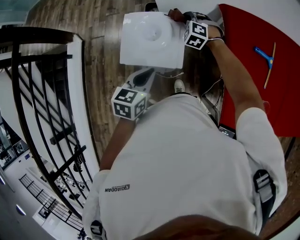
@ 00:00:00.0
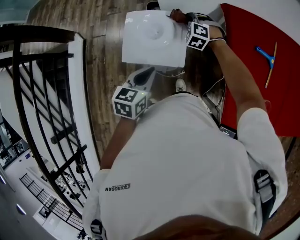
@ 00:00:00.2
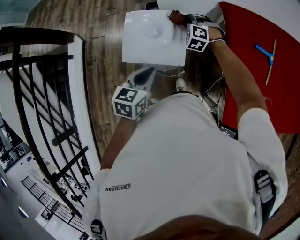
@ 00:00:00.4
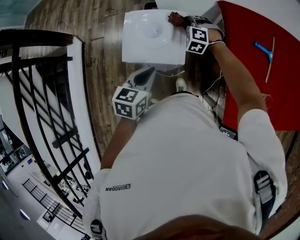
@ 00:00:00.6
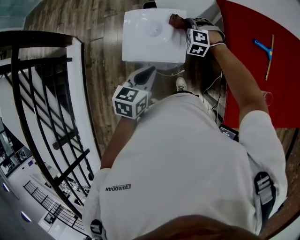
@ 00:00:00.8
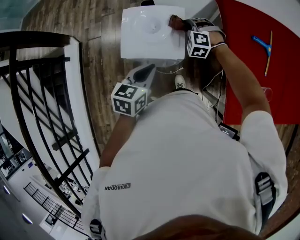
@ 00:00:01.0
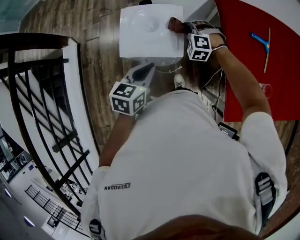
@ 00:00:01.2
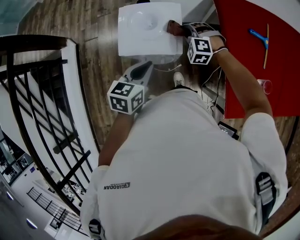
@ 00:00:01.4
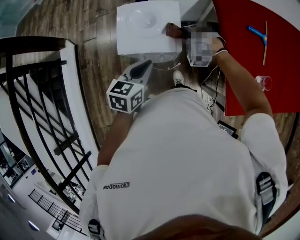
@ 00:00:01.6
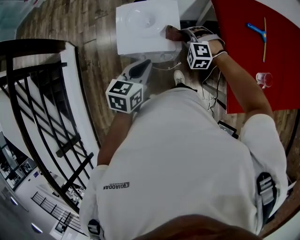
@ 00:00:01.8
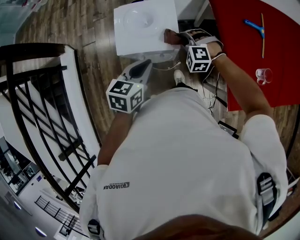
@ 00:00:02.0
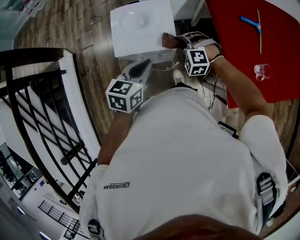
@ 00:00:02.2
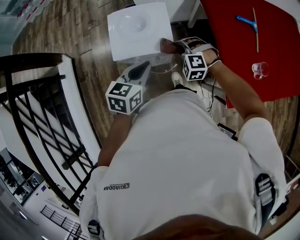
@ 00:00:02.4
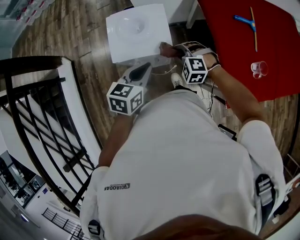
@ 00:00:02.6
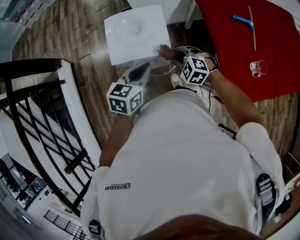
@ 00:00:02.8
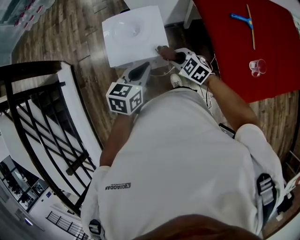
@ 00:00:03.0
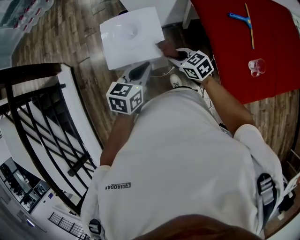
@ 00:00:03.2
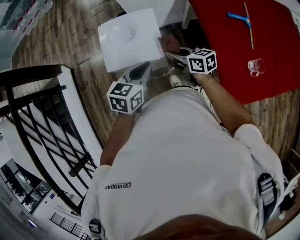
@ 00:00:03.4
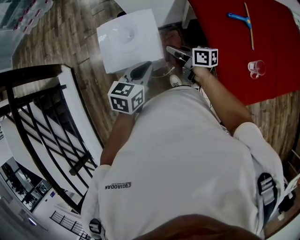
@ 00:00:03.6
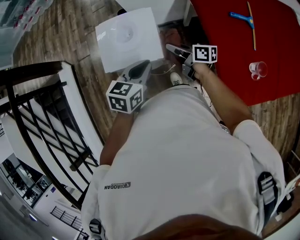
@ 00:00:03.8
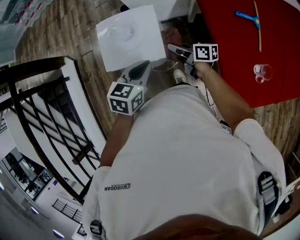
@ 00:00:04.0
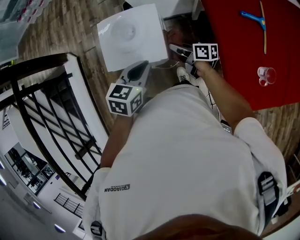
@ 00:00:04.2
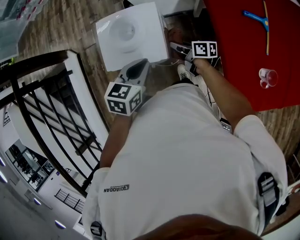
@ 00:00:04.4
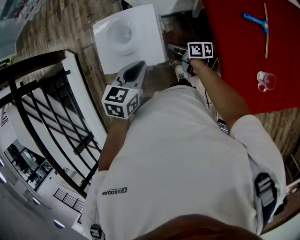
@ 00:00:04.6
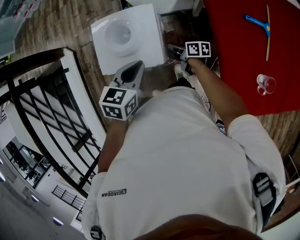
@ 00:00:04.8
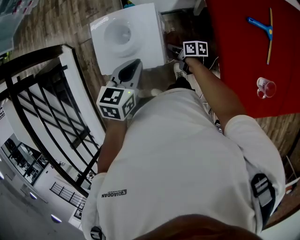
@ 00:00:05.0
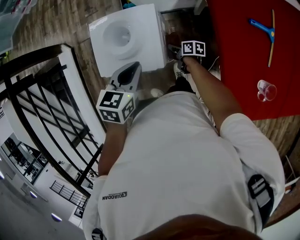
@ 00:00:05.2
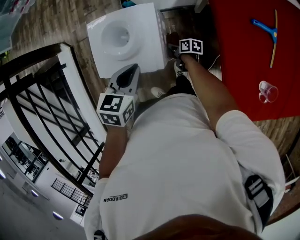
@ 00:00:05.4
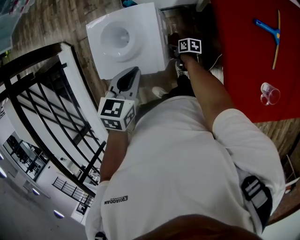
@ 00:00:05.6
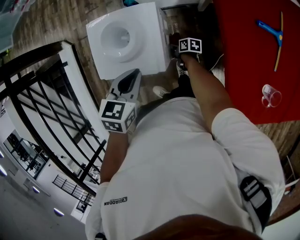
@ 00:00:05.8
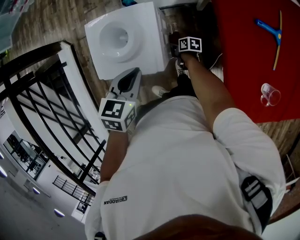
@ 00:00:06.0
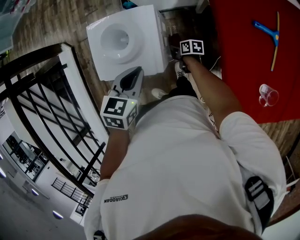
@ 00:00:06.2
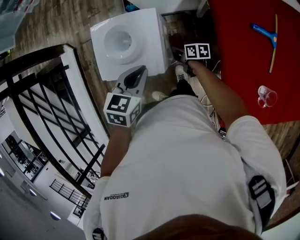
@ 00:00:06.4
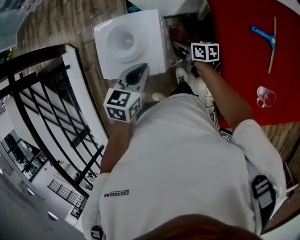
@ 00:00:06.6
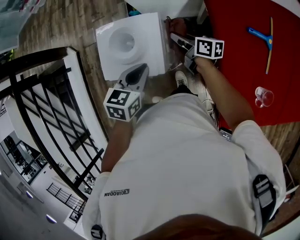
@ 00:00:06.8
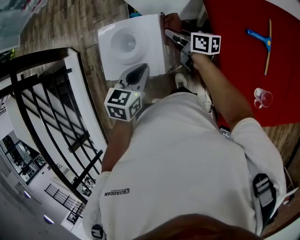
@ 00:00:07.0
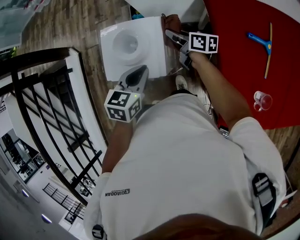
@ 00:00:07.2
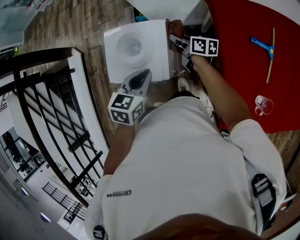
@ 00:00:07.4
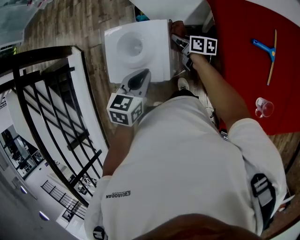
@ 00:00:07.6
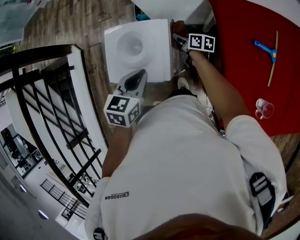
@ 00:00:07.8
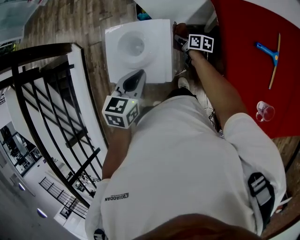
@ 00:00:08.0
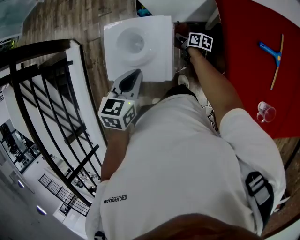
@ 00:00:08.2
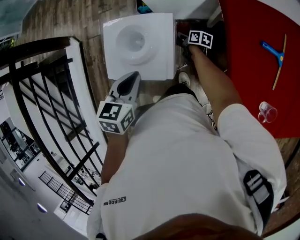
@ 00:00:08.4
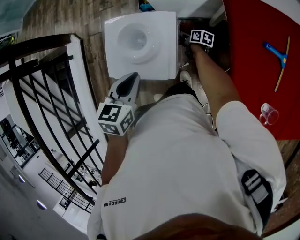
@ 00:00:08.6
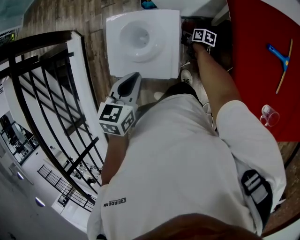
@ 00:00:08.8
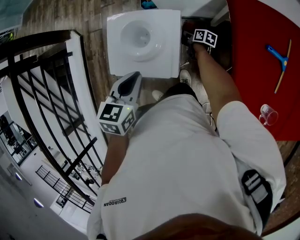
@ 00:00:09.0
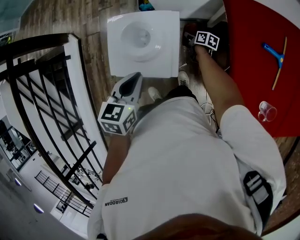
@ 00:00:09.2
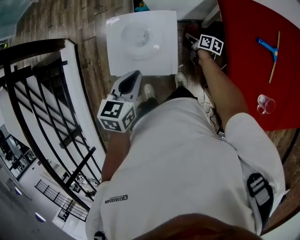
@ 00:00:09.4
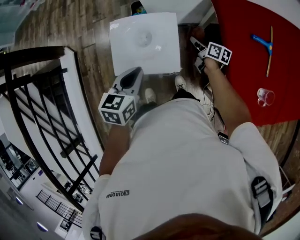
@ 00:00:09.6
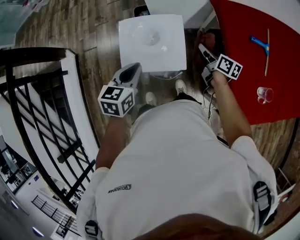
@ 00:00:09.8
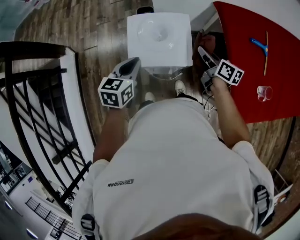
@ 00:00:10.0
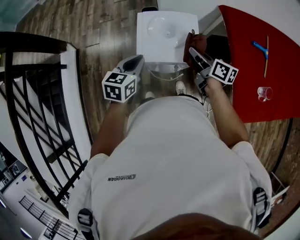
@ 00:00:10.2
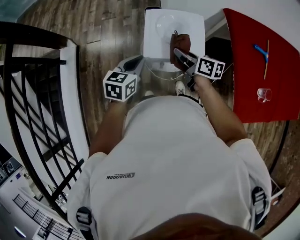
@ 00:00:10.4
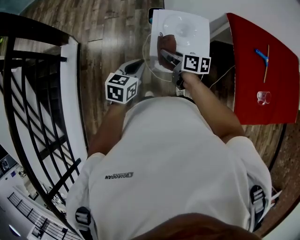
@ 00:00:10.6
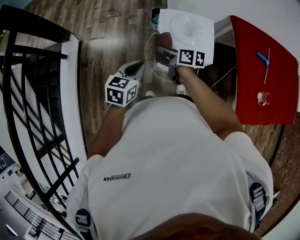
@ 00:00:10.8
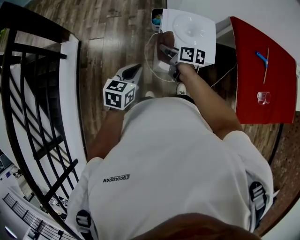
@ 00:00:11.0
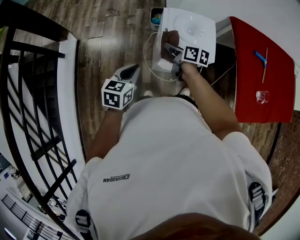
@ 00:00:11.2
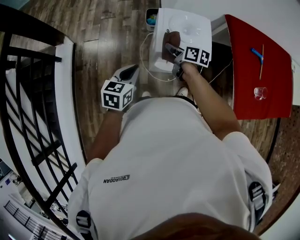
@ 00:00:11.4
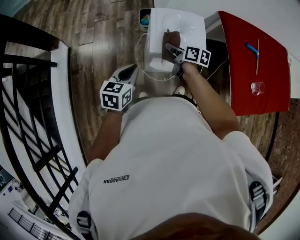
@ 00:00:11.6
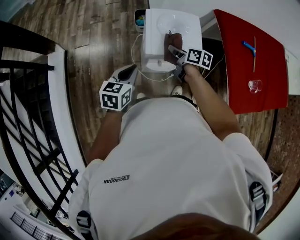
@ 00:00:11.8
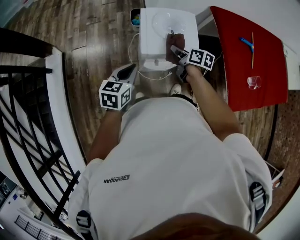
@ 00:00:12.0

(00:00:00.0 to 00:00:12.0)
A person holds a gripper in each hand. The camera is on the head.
00:00:00.0 - 00:00:01.6: The right gripper shifts about 15 cm backward.
00:00:01.6 - 00:00:03.0: The right gripper heads backward, covering approximately 10 cm, and rolls clockwise, seen from behind, by roughly 50 degrees.
00:00:03.0 - 00:00:04.4: The right gripper is displaced forward and downward by approximately 15 cm, and rolls clockwise, seen from behind, by approximately 70 degrees. The left gripper shifts by approximately 5 cm.
00:00:04.4 - 00:00:06.0: The right gripper travels downward by some 20 cm, and turns by about 30 degrees.
00:00:06.0 - 00:00:07.6: The right gripper travels upward and forward by about 25 cm, and rotates about 30 degrees.
00:00:07.6 - 00:00:09.0: The right gripper travels downward by roughly 20 cm, and swivels about 20 degrees. Meanwhile the left gripper travels to the left by approximately 5 cm.
00:00:09.0 - 00:00:10.4: The right gripper shifts some 40 cm upward, to the left and backward, and rotates approximately 30 degrees, while the left gripper travels to the left by about 15 cm.
00:00:10.4 - 00:00:12.0: The right gripper travels downward by approximately 5 cm, and moves some 15 cm to the left and comes back.

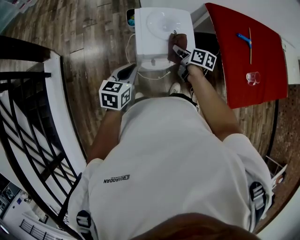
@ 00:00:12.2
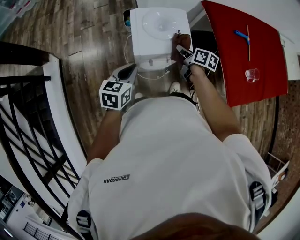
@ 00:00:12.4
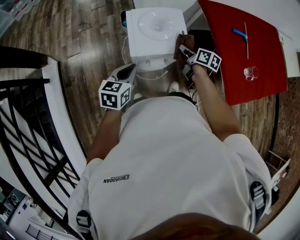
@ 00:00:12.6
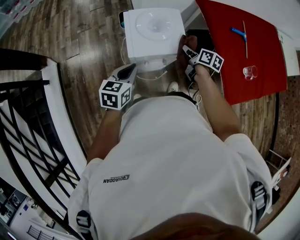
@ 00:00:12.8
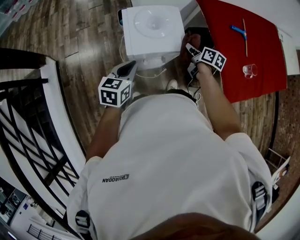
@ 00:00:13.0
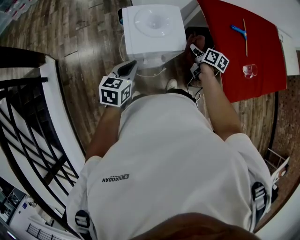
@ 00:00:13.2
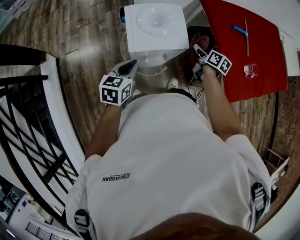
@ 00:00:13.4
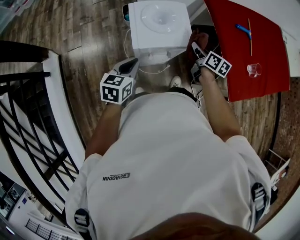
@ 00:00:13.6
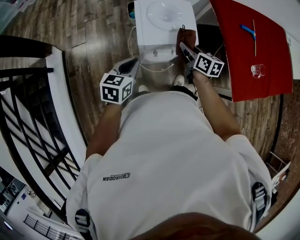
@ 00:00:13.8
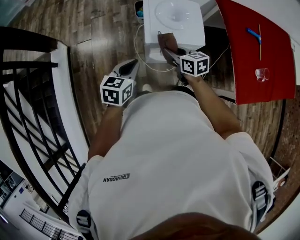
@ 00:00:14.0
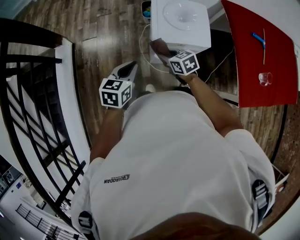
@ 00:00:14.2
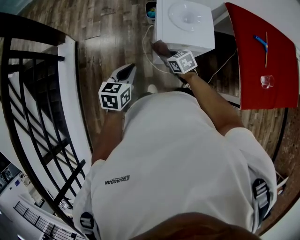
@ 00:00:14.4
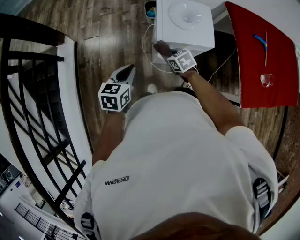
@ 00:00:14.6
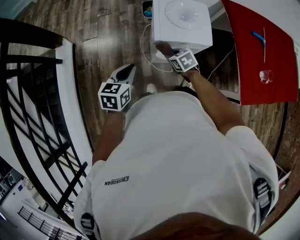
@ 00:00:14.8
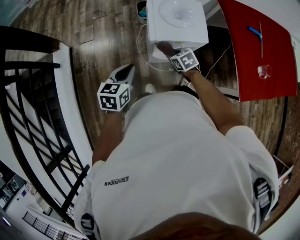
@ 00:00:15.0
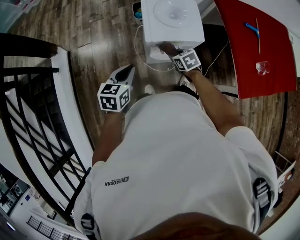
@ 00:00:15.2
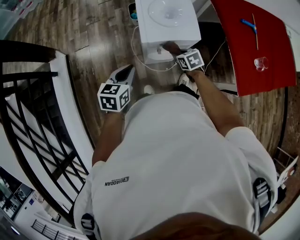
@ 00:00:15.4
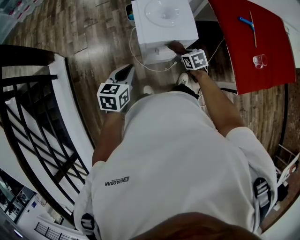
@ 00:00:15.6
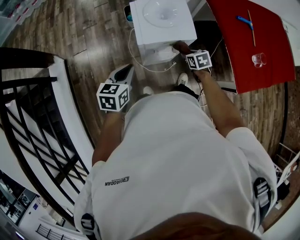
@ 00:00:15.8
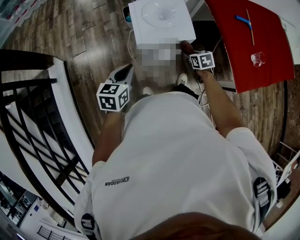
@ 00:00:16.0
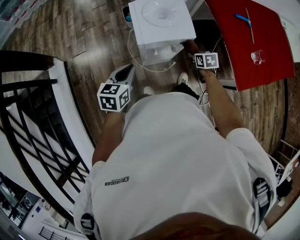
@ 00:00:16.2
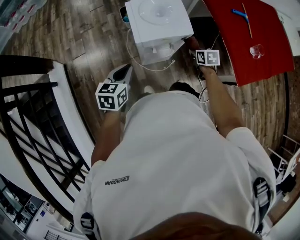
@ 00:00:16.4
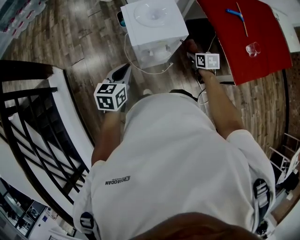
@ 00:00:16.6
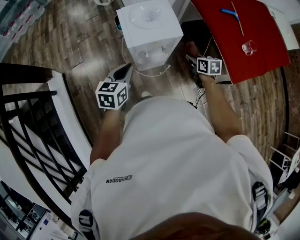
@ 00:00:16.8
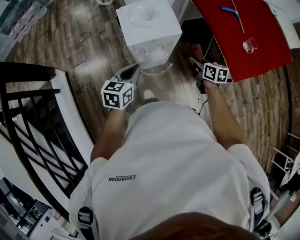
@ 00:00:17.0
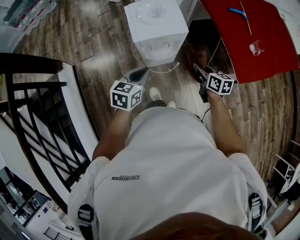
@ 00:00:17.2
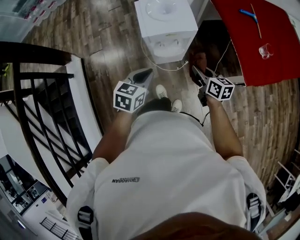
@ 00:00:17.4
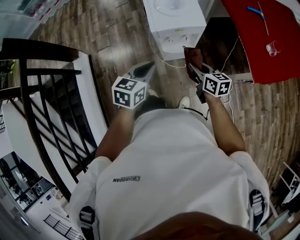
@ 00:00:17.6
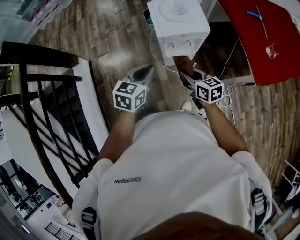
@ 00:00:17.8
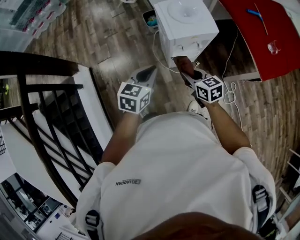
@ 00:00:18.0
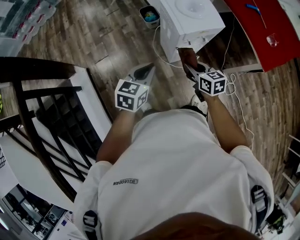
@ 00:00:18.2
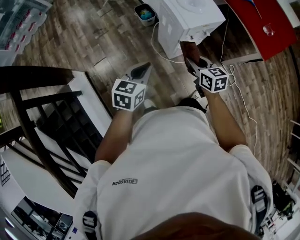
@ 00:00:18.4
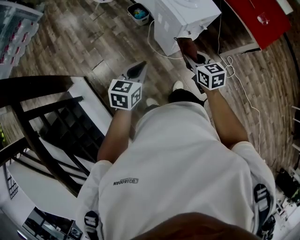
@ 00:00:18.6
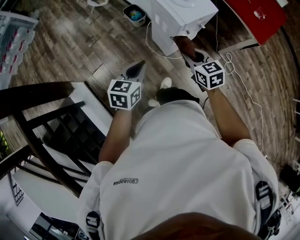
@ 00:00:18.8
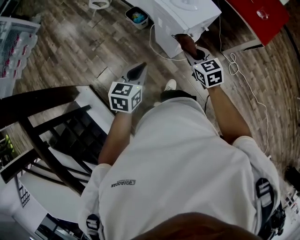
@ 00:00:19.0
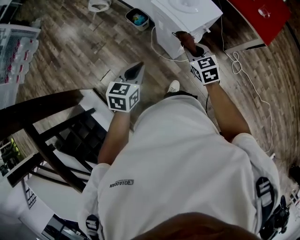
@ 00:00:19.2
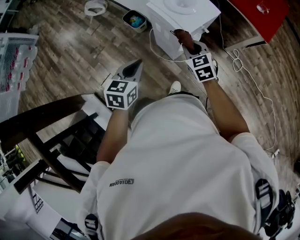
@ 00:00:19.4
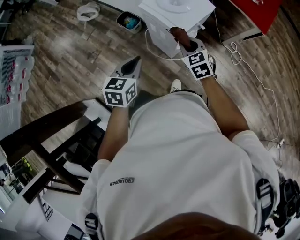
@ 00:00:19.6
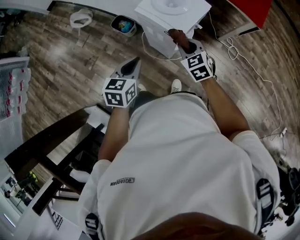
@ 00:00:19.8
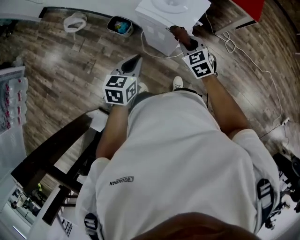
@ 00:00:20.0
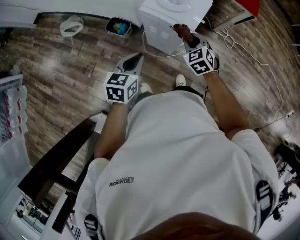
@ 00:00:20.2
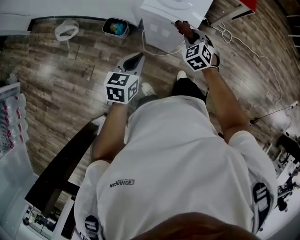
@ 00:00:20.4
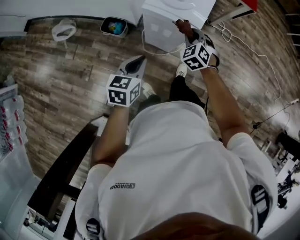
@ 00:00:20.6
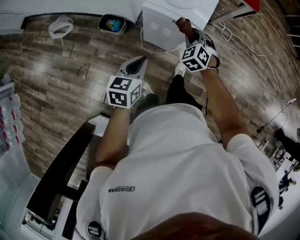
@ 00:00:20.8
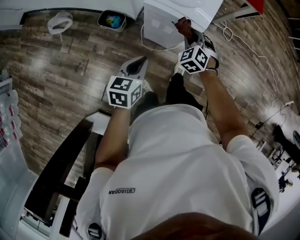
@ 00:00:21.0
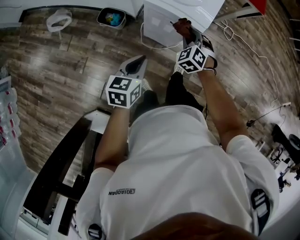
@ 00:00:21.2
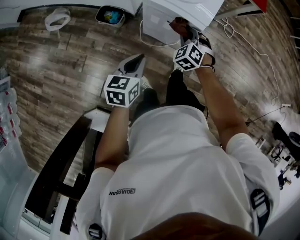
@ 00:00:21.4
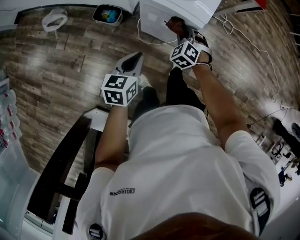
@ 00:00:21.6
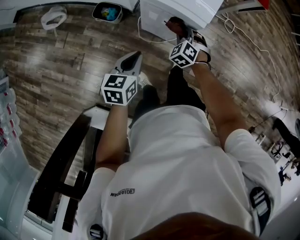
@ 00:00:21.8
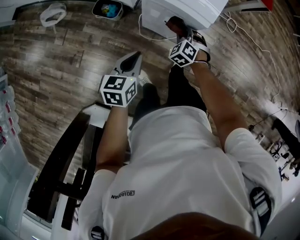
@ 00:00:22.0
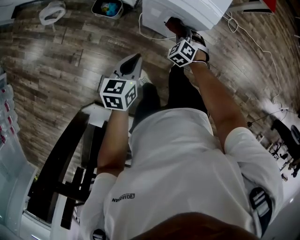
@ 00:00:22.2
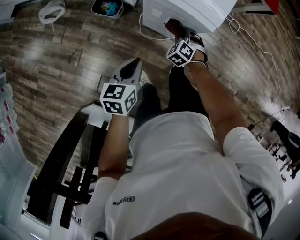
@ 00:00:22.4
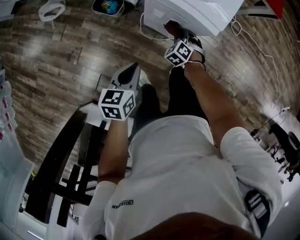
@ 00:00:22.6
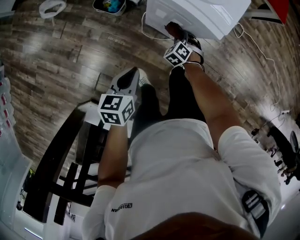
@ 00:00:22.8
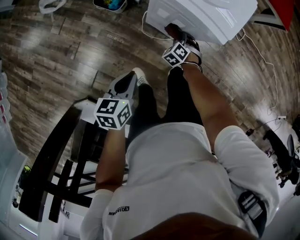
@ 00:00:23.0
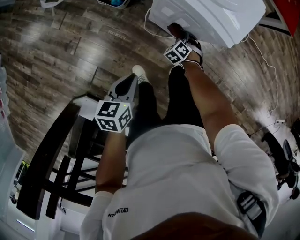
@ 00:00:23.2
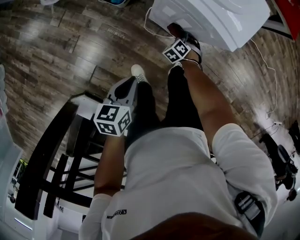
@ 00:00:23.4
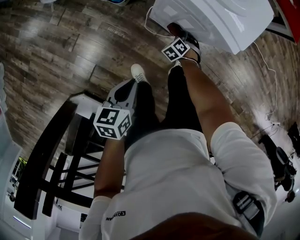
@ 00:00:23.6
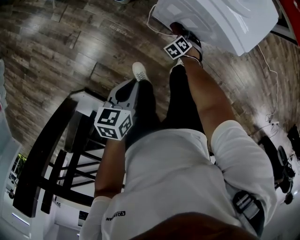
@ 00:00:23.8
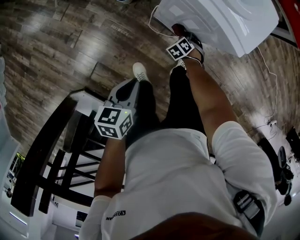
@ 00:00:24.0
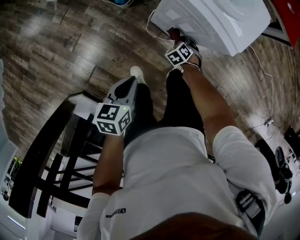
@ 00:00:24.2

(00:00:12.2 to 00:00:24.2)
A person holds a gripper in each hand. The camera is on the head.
00:00:12.2 - 00:00:13.8: The right gripper moves some 15 cm to the right and comes back.
00:00:13.8 - 00:00:15.2: The right gripper heads downward and to the left, covering approximately 15 cm, and points its fingers approximately 30 degrees further downward. Meanwhile the left gripper moves to the left, approximately 5 cm.
00:00:15.2 - 00:00:16.6: The right gripper is displaced to the right by some 15 cm, and swivels about 30 degrees.
00:00:16.6 - 00:00:18.2: The right gripper is displaced to the left and backward by roughly 30 cm, while the left gripper is displaced to the left and backward by about 15 cm.
00:00:18.2 - 00:00:19.8: The right gripper ends up some 15 cm from where it was, and changes its angle by roughly 40 degrees. Meanwhile the left gripper ends up some 20 cm from where it was, and rotates some 20 degrees.
00:00:19.8 - 00:00:21.2: The left gripper shifts by roughly 10 cm; the right gripper is displaced downward by about 10 cm, and rotates roughly 30 degrees.
00:00:21.2 - 00:00:22.6: The right gripper heads downward, covering approximately 20 cm. The left gripper shifts approximately 5 cm downward.
00:00:22.6 - 00:00:24.2: The left gripper moves some 5 cm; the right gripper shifts some 10 cm downward.
